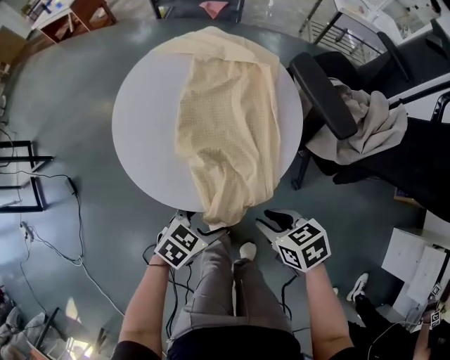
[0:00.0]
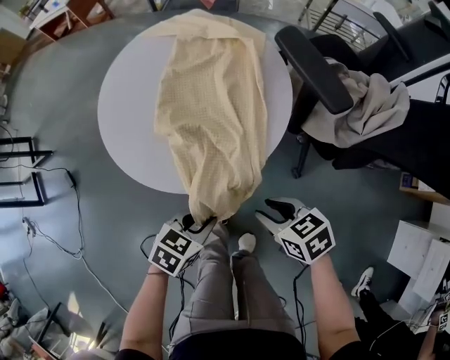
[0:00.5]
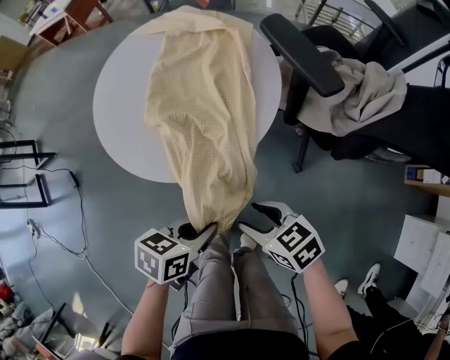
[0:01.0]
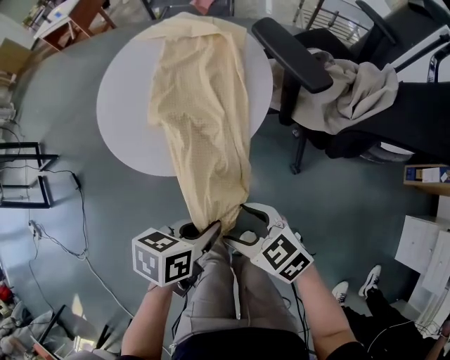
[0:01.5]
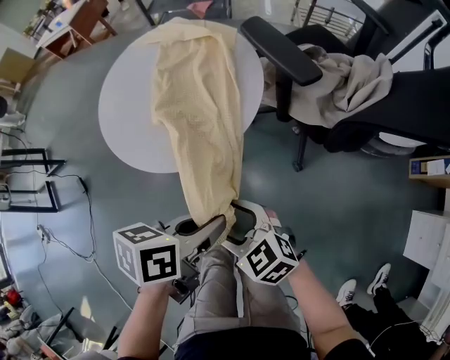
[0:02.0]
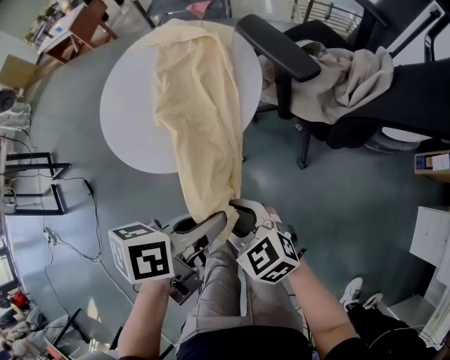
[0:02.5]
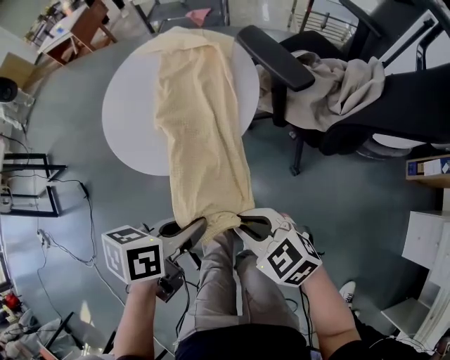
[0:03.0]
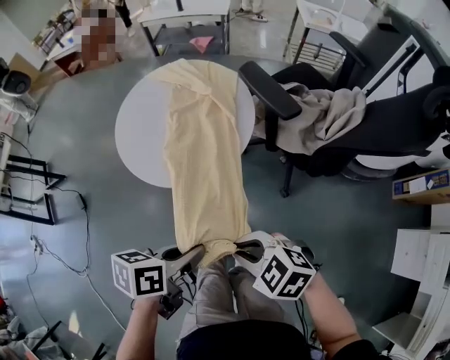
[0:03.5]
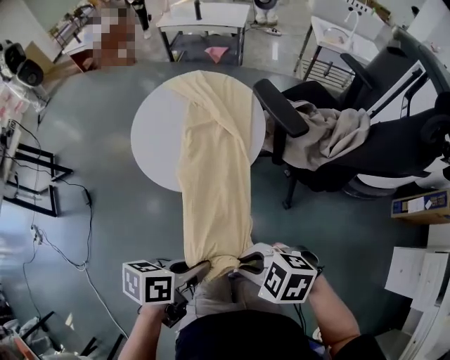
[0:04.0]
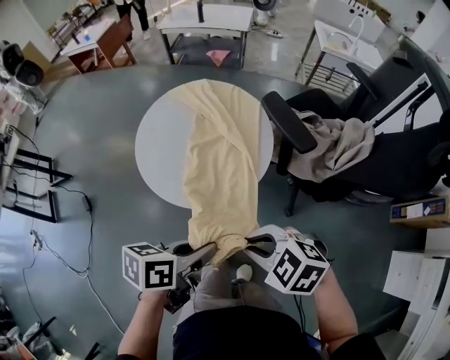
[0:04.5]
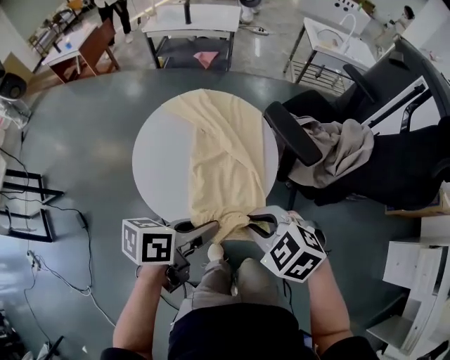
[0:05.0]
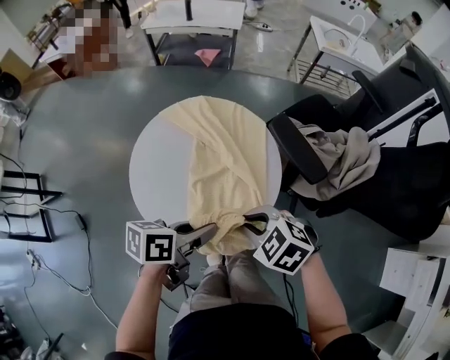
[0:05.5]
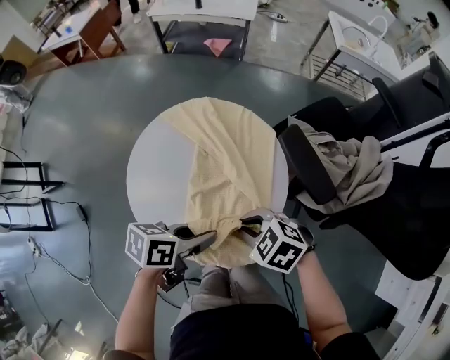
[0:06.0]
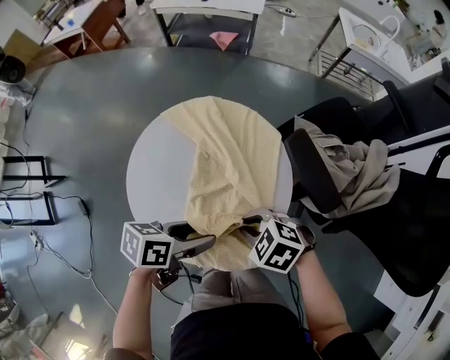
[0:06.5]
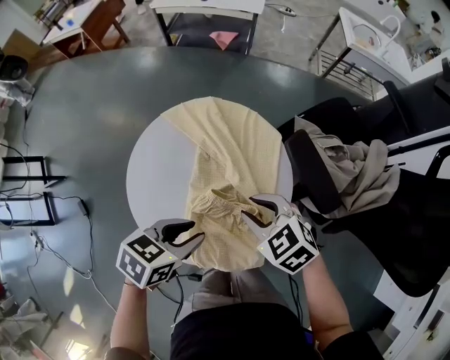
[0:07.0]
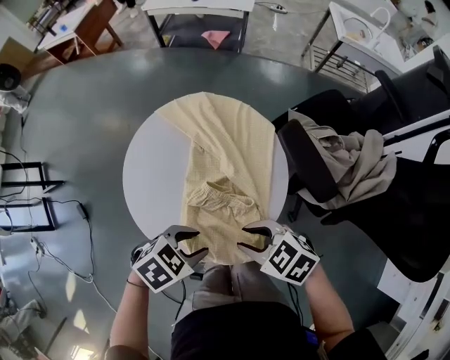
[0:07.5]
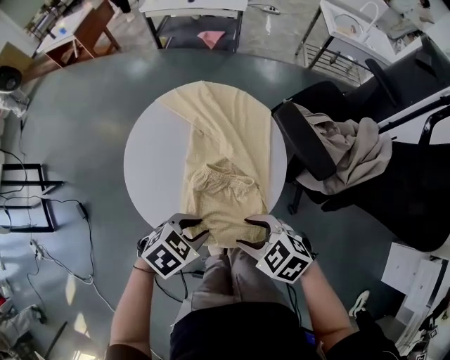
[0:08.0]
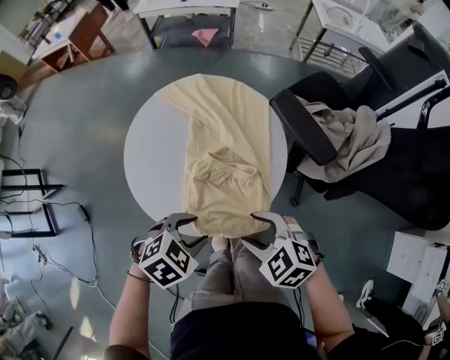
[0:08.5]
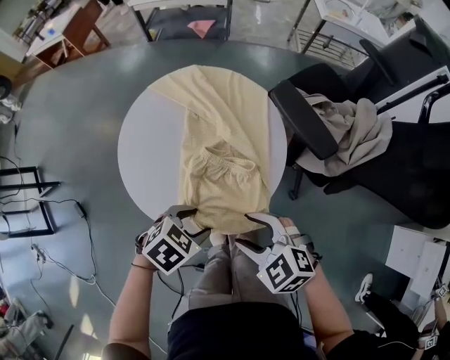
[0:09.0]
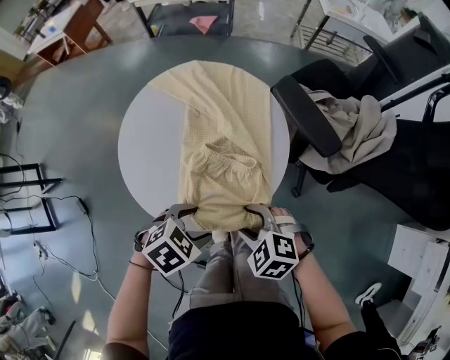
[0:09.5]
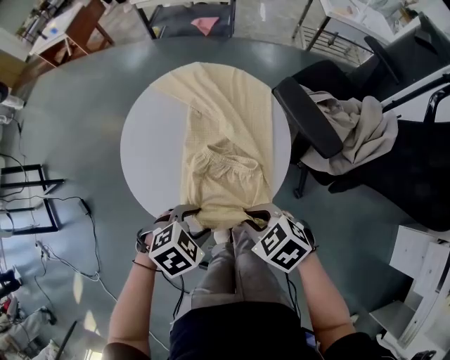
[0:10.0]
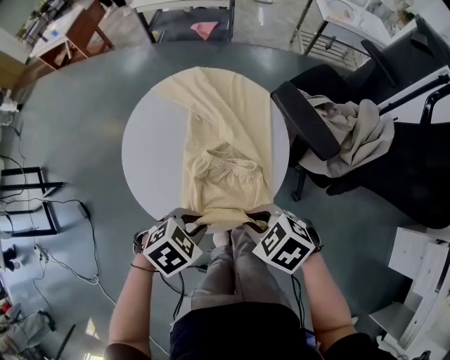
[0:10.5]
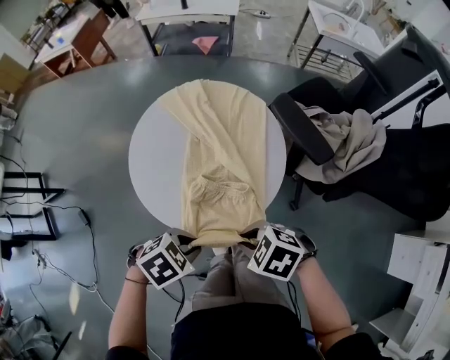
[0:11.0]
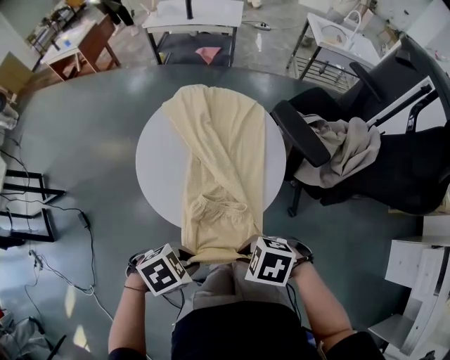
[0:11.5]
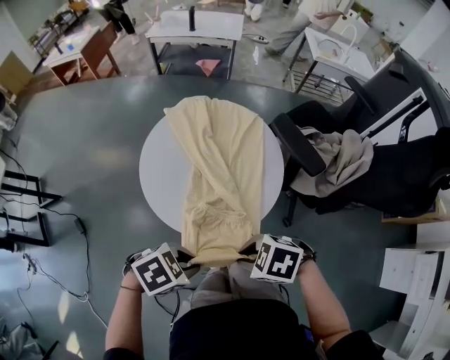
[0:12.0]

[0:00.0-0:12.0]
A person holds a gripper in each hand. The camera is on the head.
0:00.0 to 0:02.0: The right gripper ends up roughly 10 cm from where it was, swivels roughly 30 degrees, and opens its fingers. Meanwhile the left gripper is displaced upward by about 15 cm, rotates approximately 40 degrees, and closes its fingers.
0:02.0 to 0:04.0: The left gripper ends up approximately 10 cm from where it was. The right gripper heads upward, covering about 15 cm, changes its angle by approximately 30 degrees, and closes.
0:04.0 to 0:06.0: The right gripper shifts by some 35 cm. Meanwhile the left gripper ends up approximately 35 cm from where it was.
0:06.0 to 0:08.0: The left gripper ends up some 10 cm from where it was, twists about 40 degrees clockwise, seen from behind, and opens, then closes once more. Meanwhile the right gripper moves approximately 10 cm, and opens its fingers.
0:08.0 to 0:10.0: The right gripper closes.
0:10.0 to 0:12.0: The right gripper shifts by roughly 15 cm, and rotates some 20 degrees. Meanwhile the left gripper moves approximately 15 cm, and closes up.

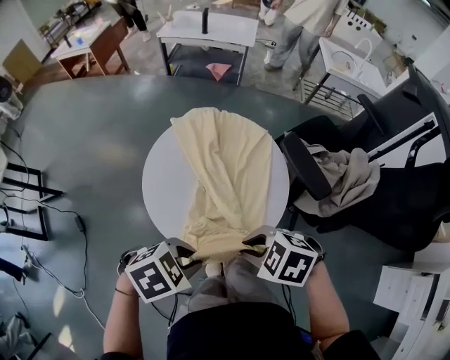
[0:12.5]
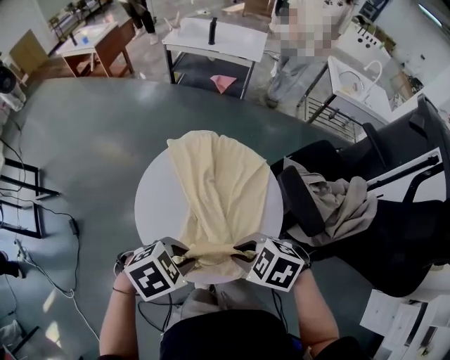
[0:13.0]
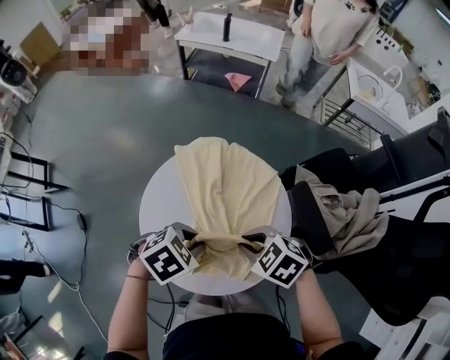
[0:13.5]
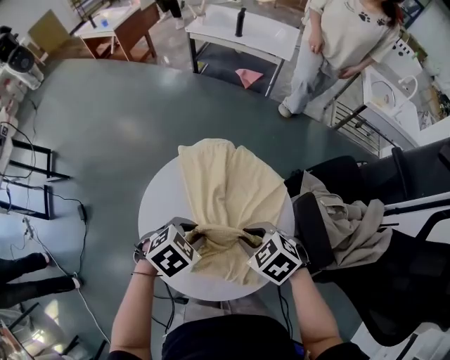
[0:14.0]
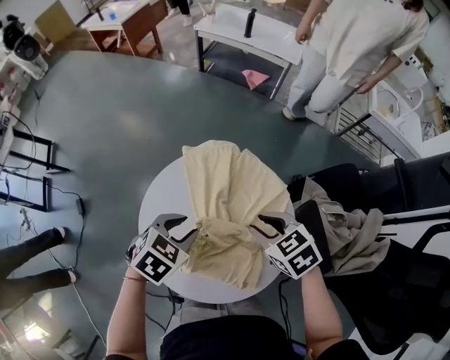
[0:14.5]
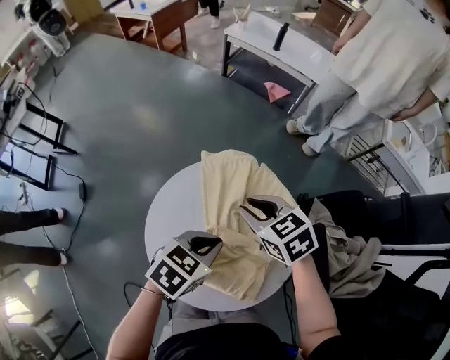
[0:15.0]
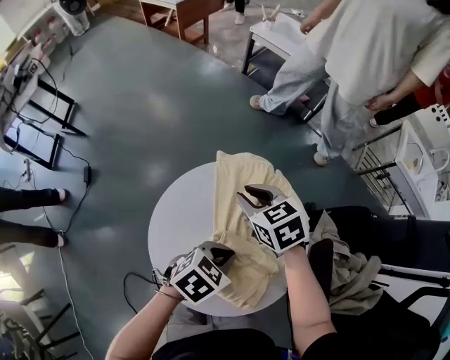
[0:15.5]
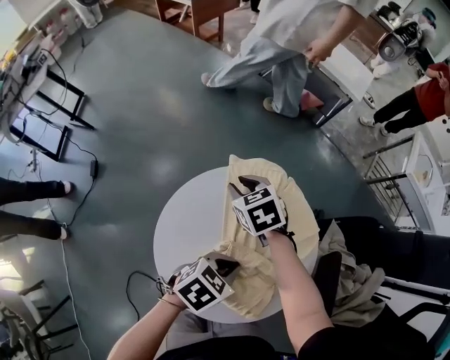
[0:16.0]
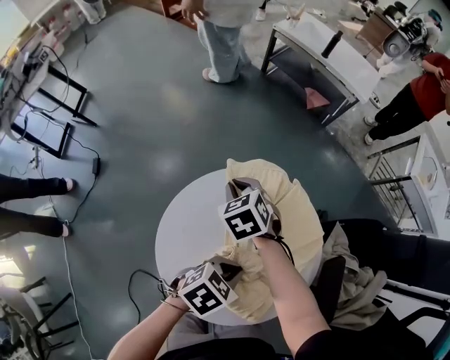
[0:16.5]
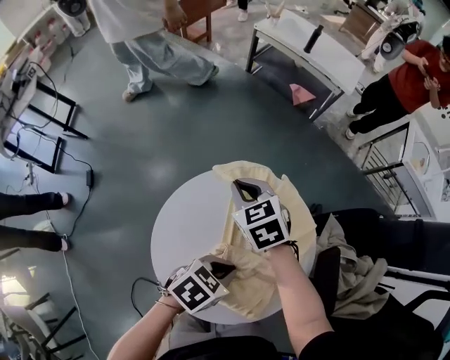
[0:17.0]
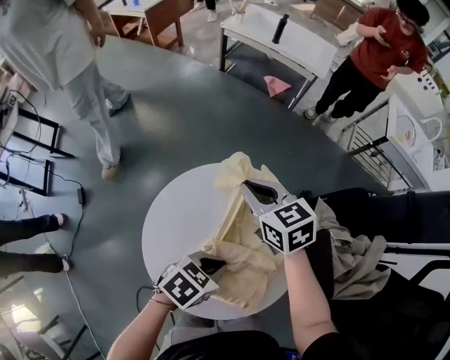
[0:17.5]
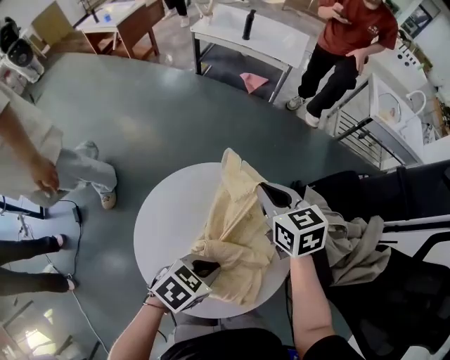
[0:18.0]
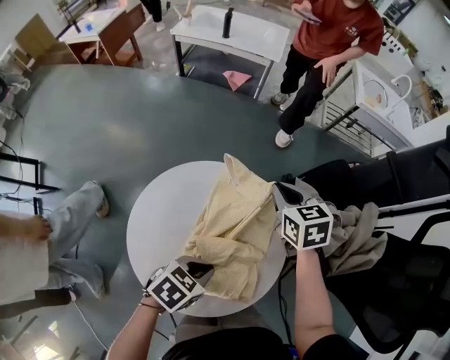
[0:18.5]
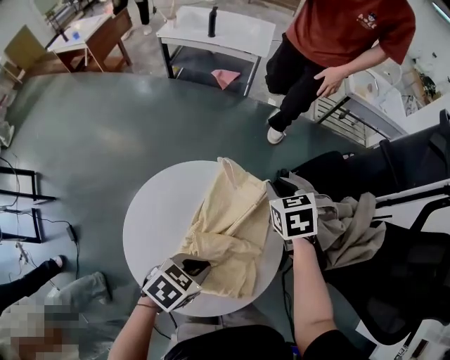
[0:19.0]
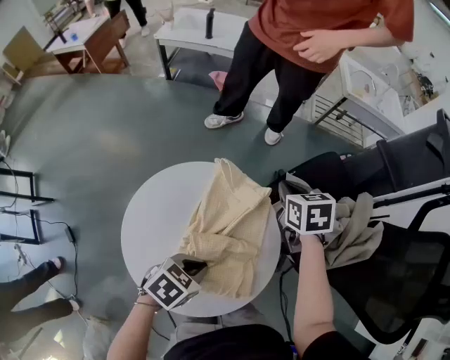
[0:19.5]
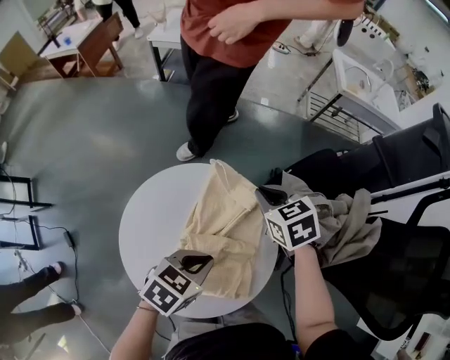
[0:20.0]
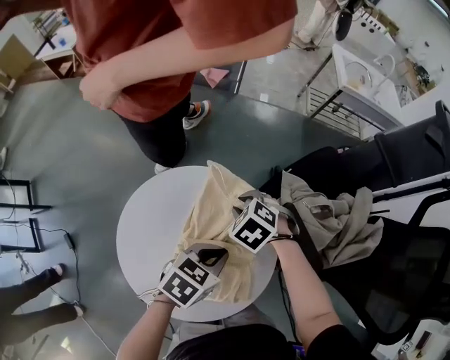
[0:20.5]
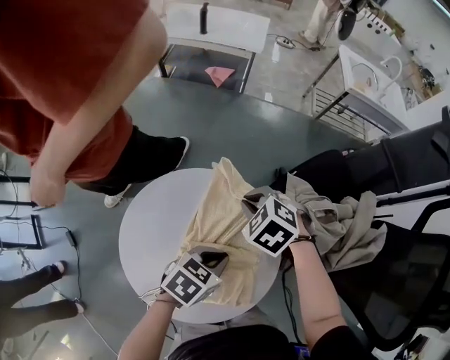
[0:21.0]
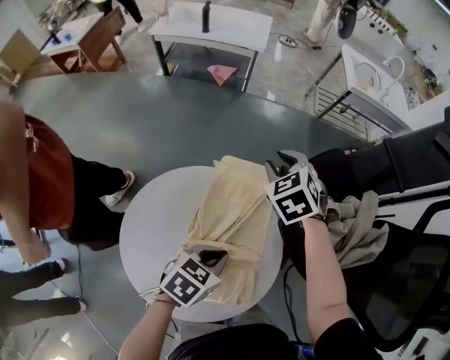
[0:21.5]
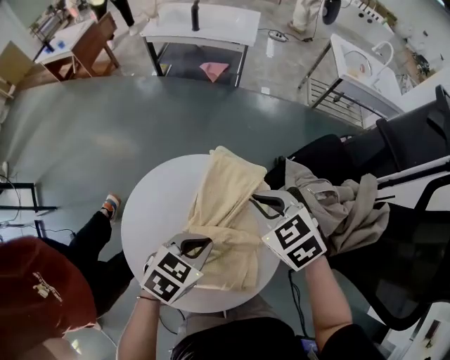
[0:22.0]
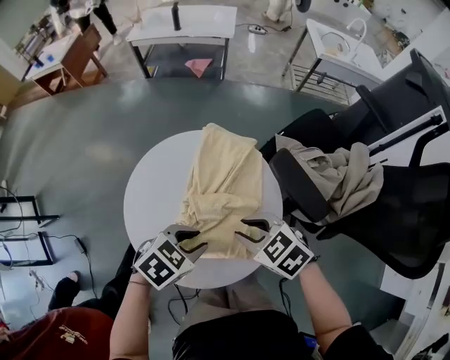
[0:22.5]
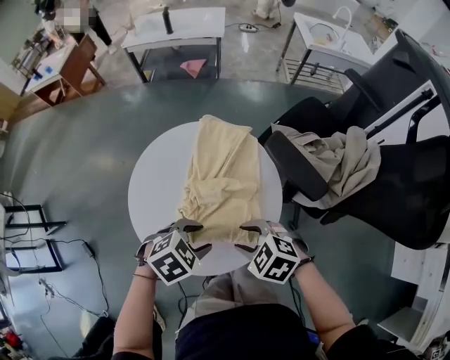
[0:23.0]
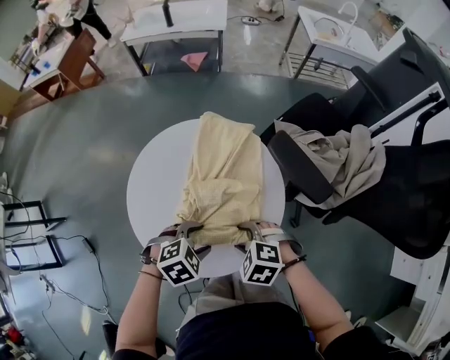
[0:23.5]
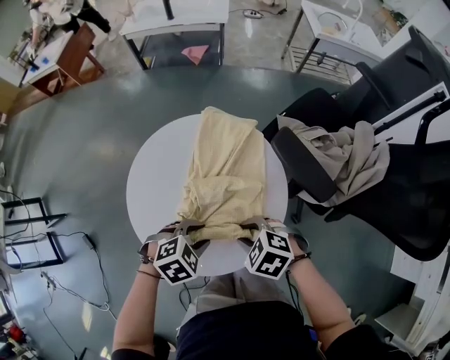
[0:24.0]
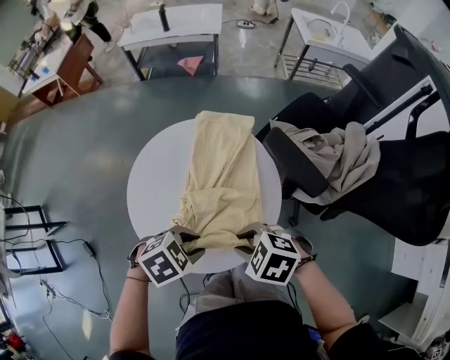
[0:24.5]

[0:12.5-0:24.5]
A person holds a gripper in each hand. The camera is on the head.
0:12.5 to 0:14.5: The left gripper changes place by about 25 cm, and changes its angle by approximately 40 degrees, while the right gripper moves roughly 30 cm, and swivels about 20 degrees.
0:14.5 to 0:16.5: The left gripper is displaced to the right by some 5 cm, rotates about 20 degrees, and closes up, while the right gripper is displaced to the left and forward by approximately 25 cm.
0:16.5 to 0:18.5: The right gripper moves some 30 cm, and changes its angle by approximately 40 degrees.
0:18.5 to 0:20.5: The right gripper goes some 10 cm downward and backward, and changes its angle by approximately 40 degrees; the left gripper travels forward by some 10 cm.
0:20.5 to 0:22.5: The right gripper ends up some 20 cm from where it was, and turns by approximately 30 degrees; the left gripper shifts by approximately 15 cm, and turns by about 20 degrees.
0:22.5 to 0:24.5: The left gripper shifts by about 10 cm, and opens, then closes once more; the right gripper moves approximately 10 cm downward and comes back, and opens and closes again.

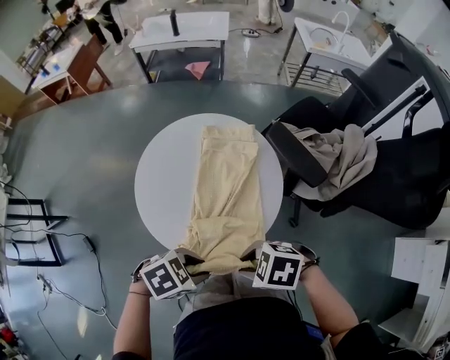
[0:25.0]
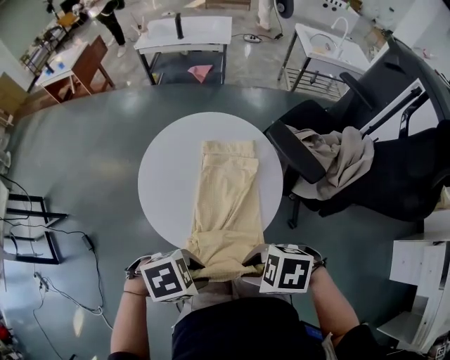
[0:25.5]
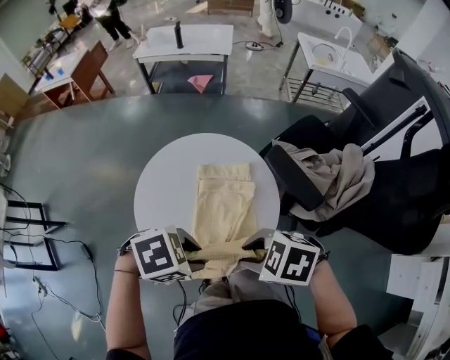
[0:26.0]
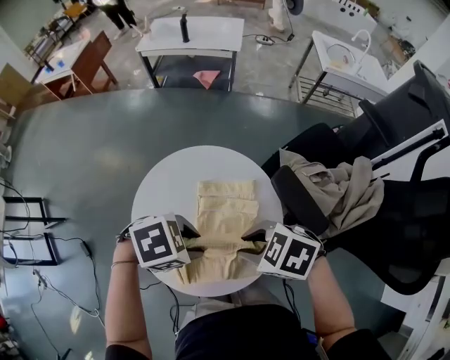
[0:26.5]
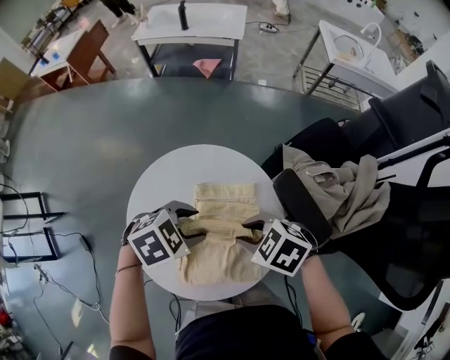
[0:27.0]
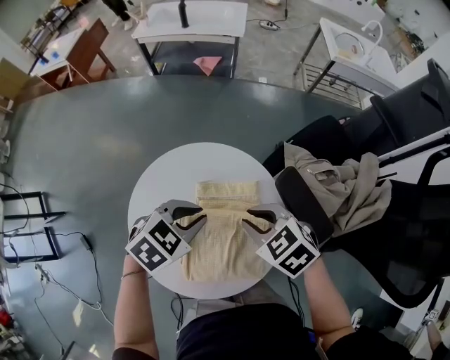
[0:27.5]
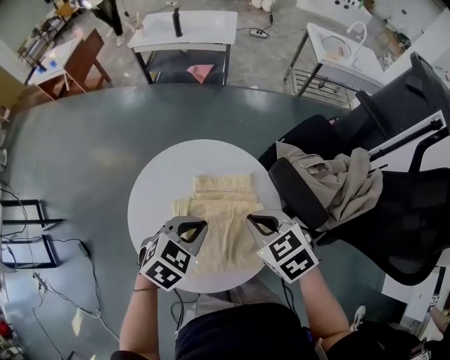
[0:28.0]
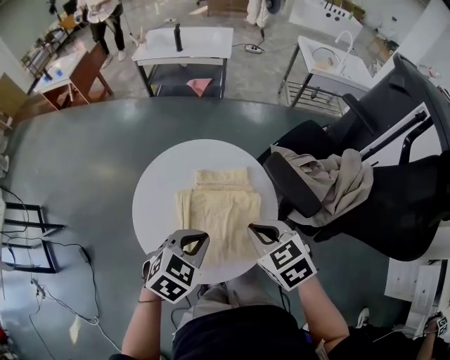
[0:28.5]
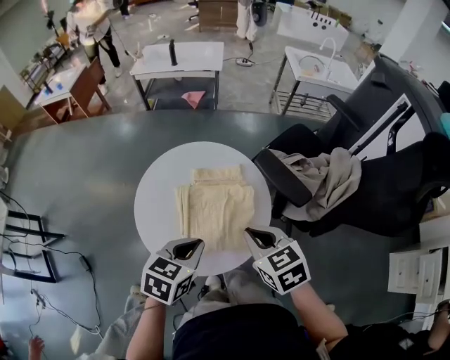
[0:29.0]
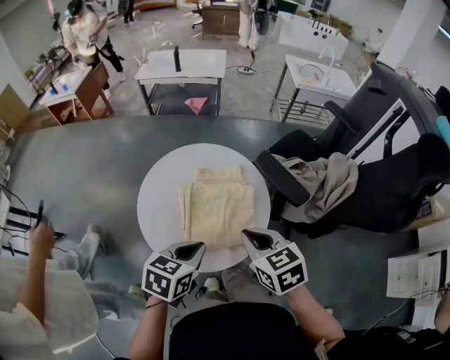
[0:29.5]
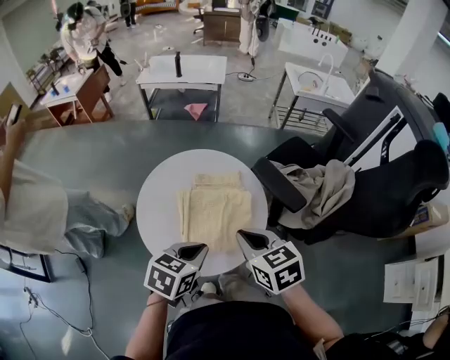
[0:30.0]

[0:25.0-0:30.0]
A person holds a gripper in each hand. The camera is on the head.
0:25.0 to 0:27.5: The right gripper changes place by about 30 cm, and turns by roughly 30 degrees; the left gripper ends up approximately 30 cm from where it was, and turns by approximately 30 degrees.
0:27.5 to 0:30.0: The right gripper is displaced backward and upward by about 20 cm, changes its angle by about 30 degrees, and closes its fingers. Meanwhile the left gripper heads backward, covering some 20 cm, and turns by about 30 degrees.
